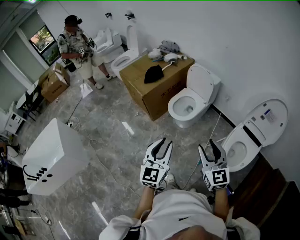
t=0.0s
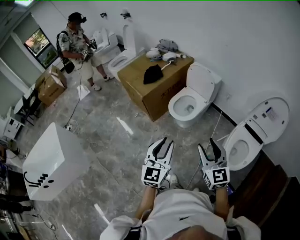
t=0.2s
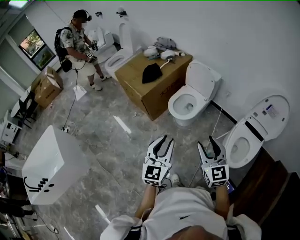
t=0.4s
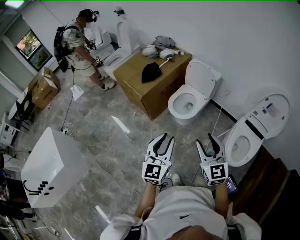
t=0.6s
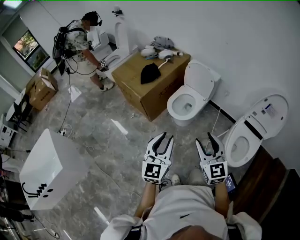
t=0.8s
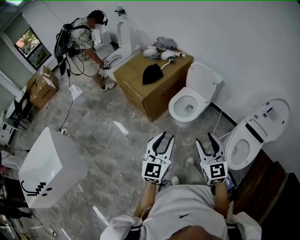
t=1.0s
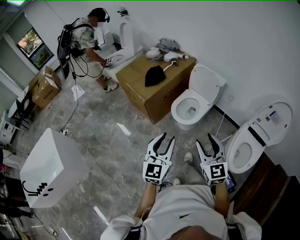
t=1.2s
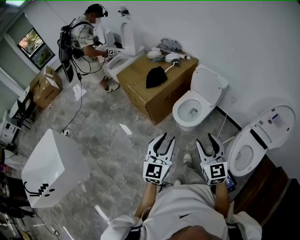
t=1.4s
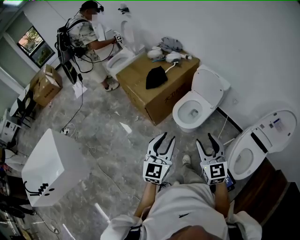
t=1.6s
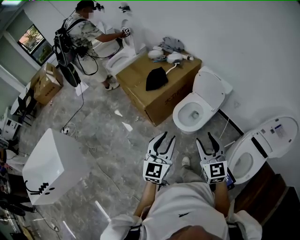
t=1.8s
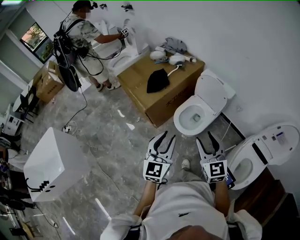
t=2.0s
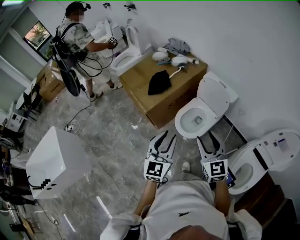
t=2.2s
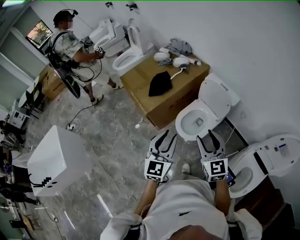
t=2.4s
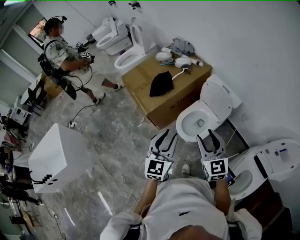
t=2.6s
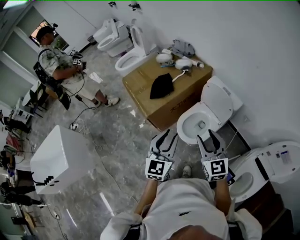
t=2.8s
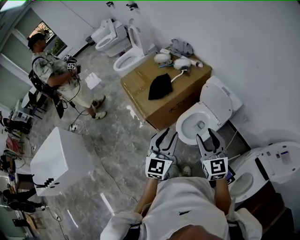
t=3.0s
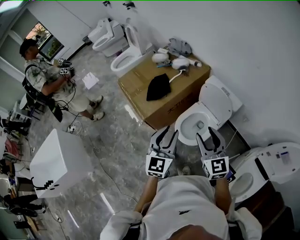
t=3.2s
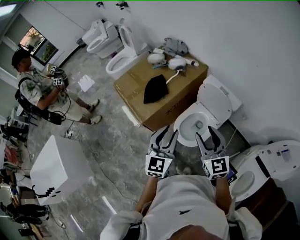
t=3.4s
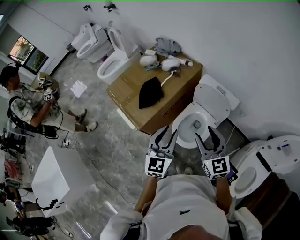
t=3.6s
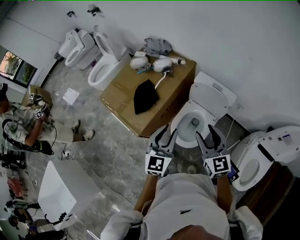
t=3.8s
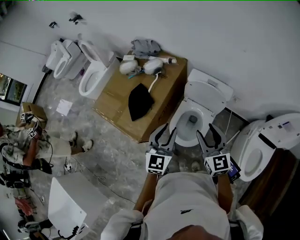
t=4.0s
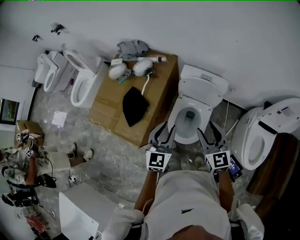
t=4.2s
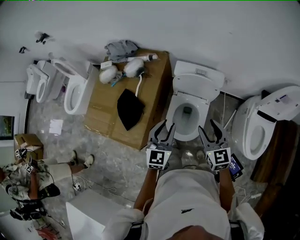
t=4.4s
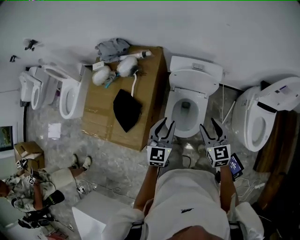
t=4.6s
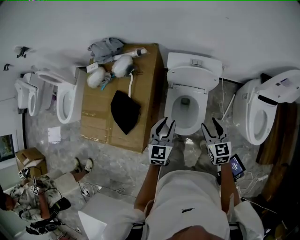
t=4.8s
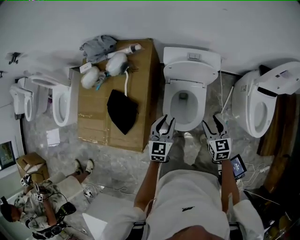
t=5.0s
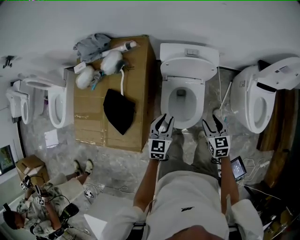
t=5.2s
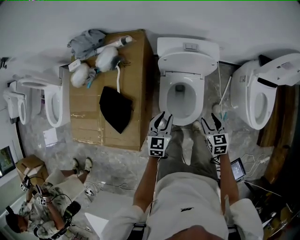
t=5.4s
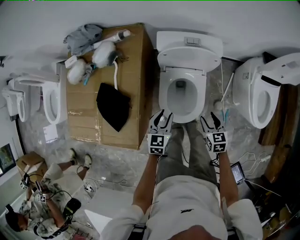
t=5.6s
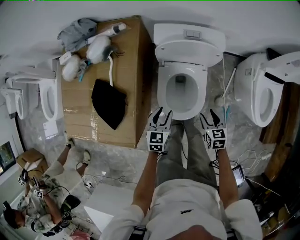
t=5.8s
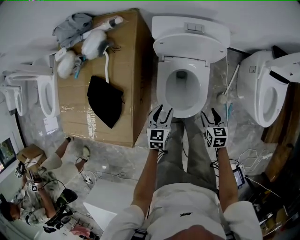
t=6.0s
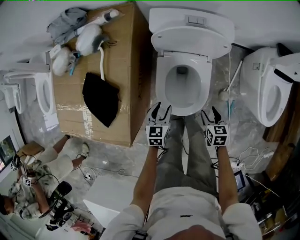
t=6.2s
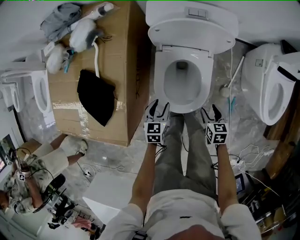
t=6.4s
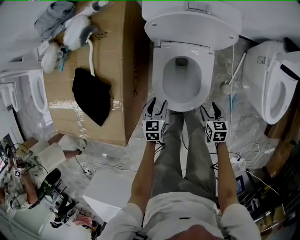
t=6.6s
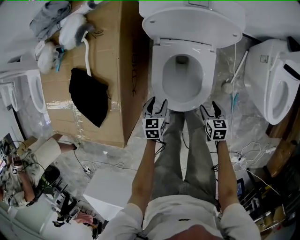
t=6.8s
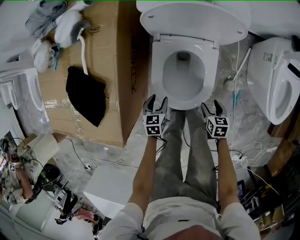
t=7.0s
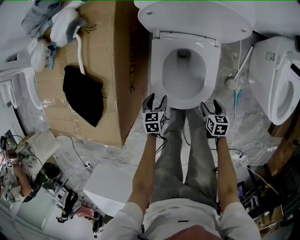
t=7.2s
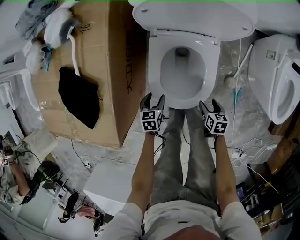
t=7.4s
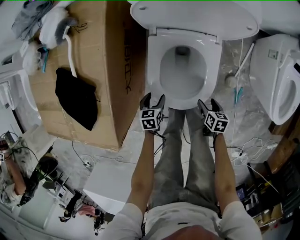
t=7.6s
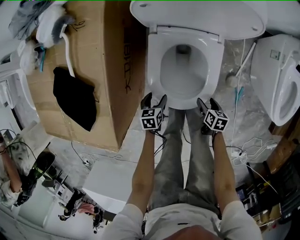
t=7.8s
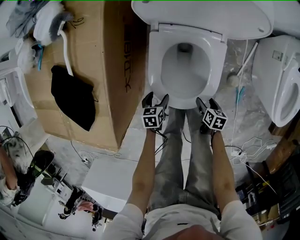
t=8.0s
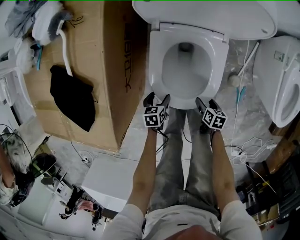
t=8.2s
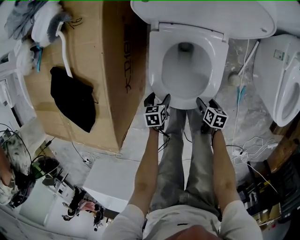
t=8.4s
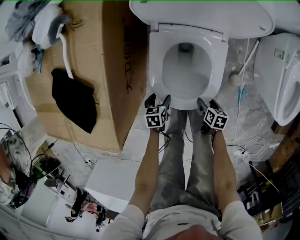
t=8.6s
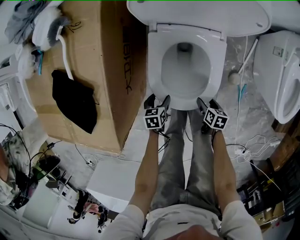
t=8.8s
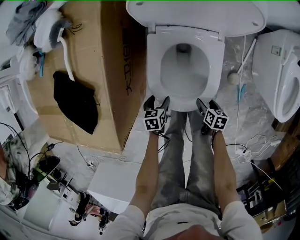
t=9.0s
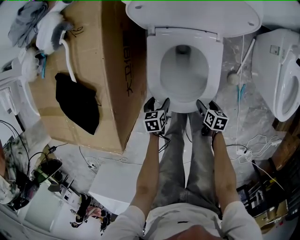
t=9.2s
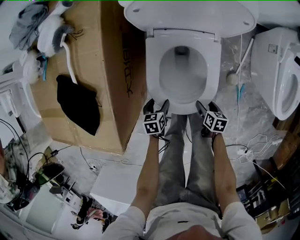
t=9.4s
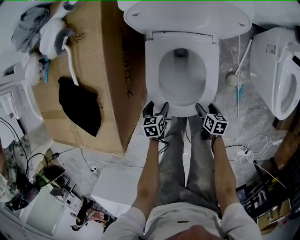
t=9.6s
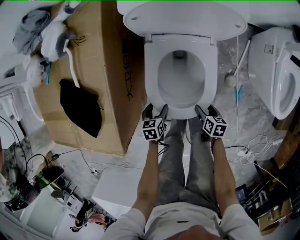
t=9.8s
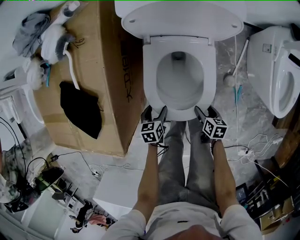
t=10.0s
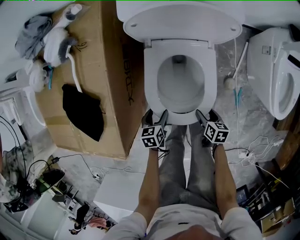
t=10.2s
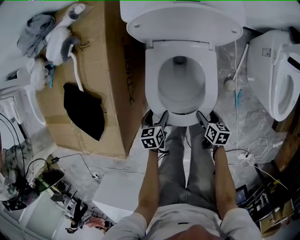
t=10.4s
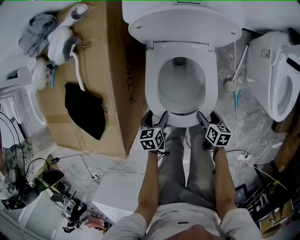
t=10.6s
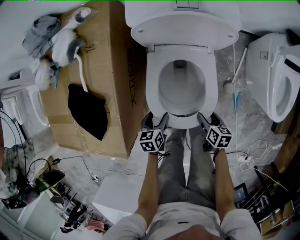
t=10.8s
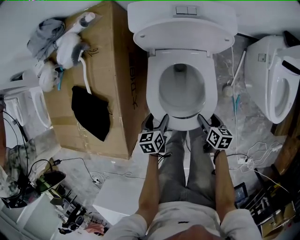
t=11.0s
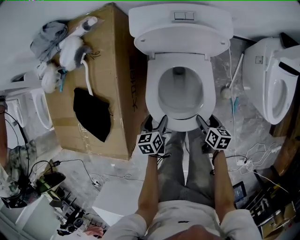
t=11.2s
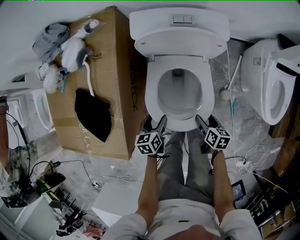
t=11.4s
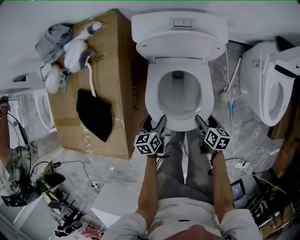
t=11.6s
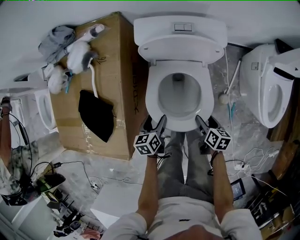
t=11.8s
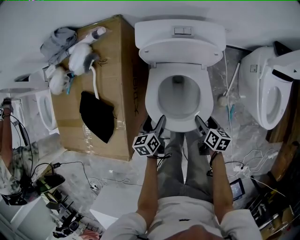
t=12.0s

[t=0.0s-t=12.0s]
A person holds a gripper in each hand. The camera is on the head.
t=0.0s to t=1.6s: The grippers both shift forward and to the left by approximately 20 cm.
t=1.6s to t=3.0s: The grippers both shift forward by roughly 20 cm.
t=3.0s to t=4.4s: The right gripper changes place by some 20 cm, and turns by roughly 40 degrees; the left gripper changes place by some 30 cm, and rotates approximately 30 degrees.
t=4.4s to t=6.0s: Both grippers move downward, roughly 35 cm. The right gripper tips its fingers downward by roughly 30 degrees, while the left gripper turns by approximately 30 degrees.
t=6.0s to t=7.6s: Both grippers travel together downward, approximately 25 cm. The left gripper rotates some 30 degrees. Meanwhile the right gripper rotates some 30 degrees.
t=7.6s to t=9.0s: There are only small adjustments of the grippers.
t=9.0s to t=10.4s: Both grippers travel together upward, about 10 cm.
t=10.4s to t=12.0s: Both grippers travel together upward and forward, roughly 15 cm.

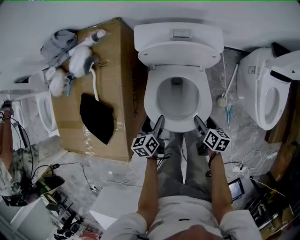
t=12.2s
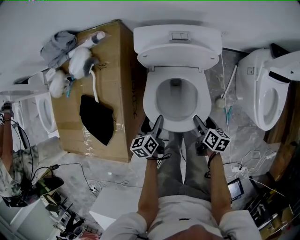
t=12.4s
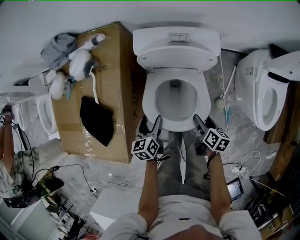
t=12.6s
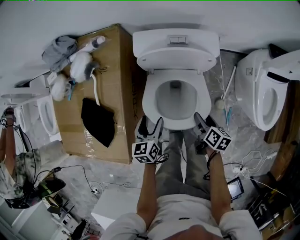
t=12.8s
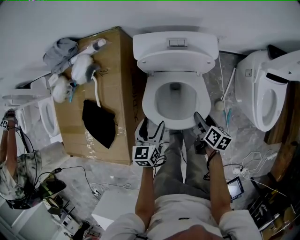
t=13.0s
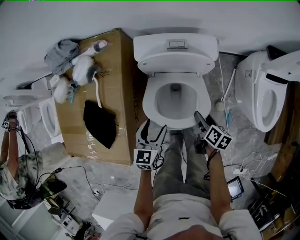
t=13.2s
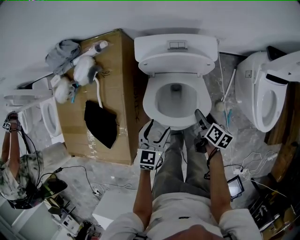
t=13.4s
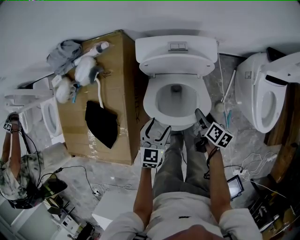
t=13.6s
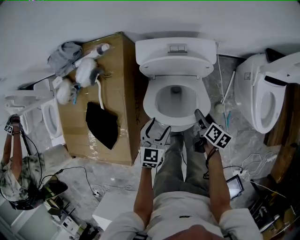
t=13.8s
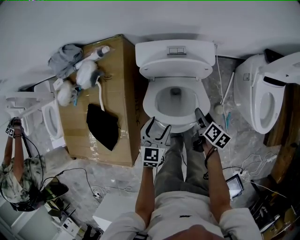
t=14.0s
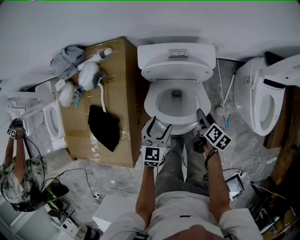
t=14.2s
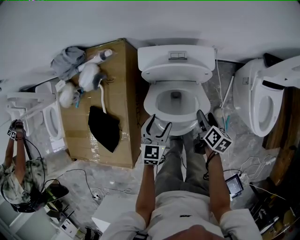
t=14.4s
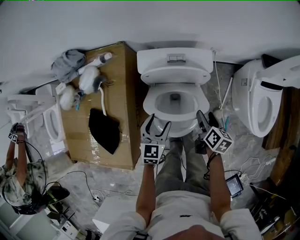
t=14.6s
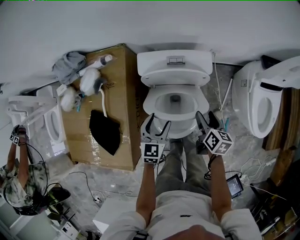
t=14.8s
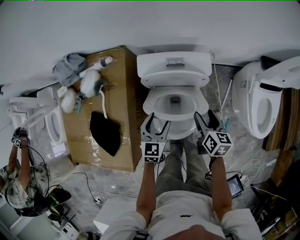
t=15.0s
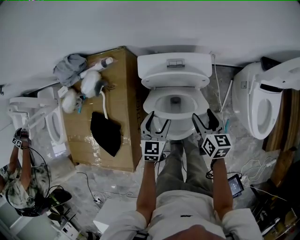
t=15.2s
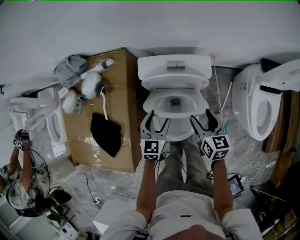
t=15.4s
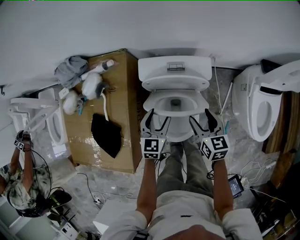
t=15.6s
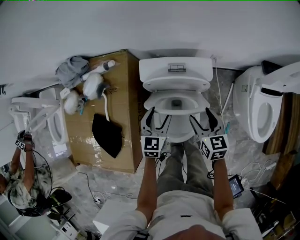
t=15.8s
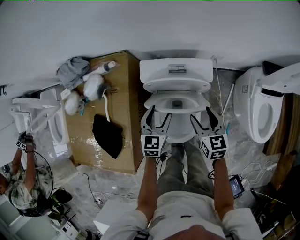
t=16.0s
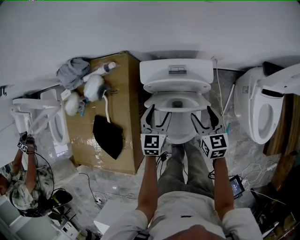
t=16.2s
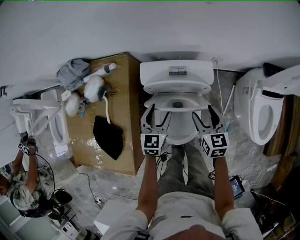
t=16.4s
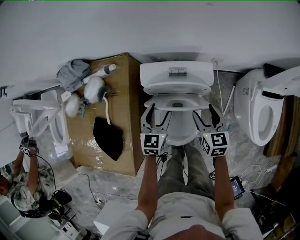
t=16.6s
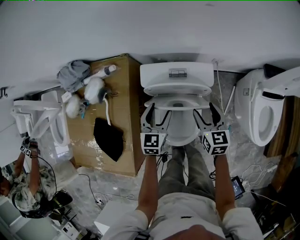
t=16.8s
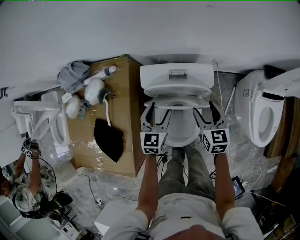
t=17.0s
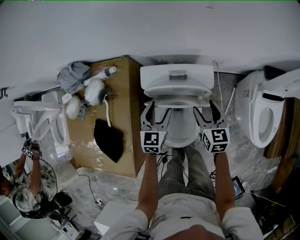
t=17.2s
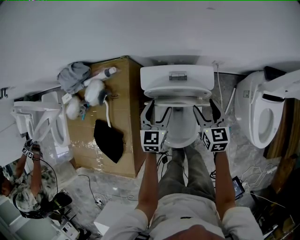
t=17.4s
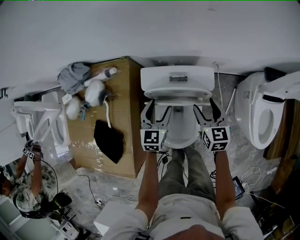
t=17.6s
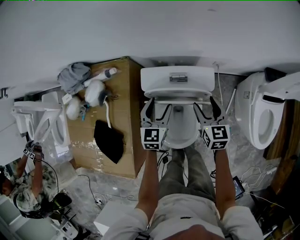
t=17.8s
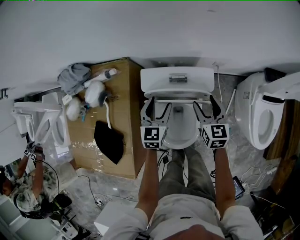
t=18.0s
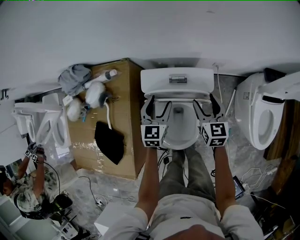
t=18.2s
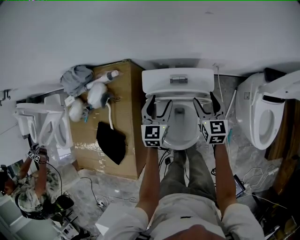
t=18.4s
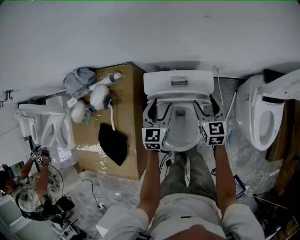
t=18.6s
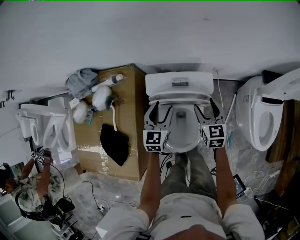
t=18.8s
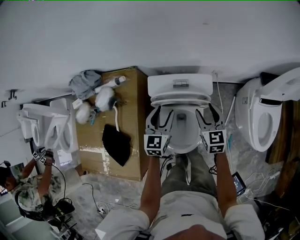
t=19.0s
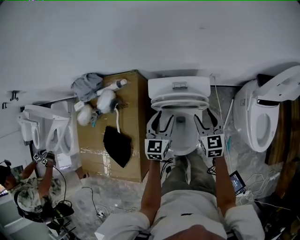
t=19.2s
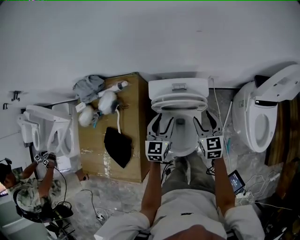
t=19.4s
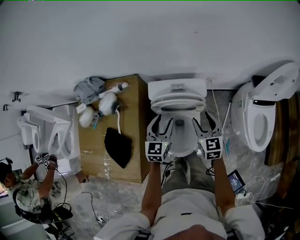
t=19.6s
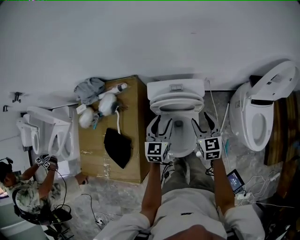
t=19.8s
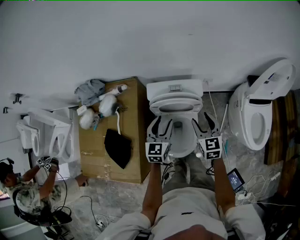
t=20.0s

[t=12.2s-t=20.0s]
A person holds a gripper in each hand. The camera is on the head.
t=12.2s to t=13.8s: The left gripper is displaced upward and to the right by about 10 cm, and rotates around the line of its fingers by some 50 degrees, clockwise from behind; the right gripper moves forward and upward, about 10 cm.
t=13.8s to t=15.4s: The right gripper shifts about 15 cm upward and forward, and rotates some 40 degrees; the left gripper shifts some 10 cm forward.
t=15.4s to t=16.8s: The two grippers go roughly 5 cm forward.
t=16.8s to t=18.4s: Both grippers travel together forward, roughly 5 cm.
t=18.4s to t=20.0s: The grippers both shift backward and upward by roughly 15 cm.

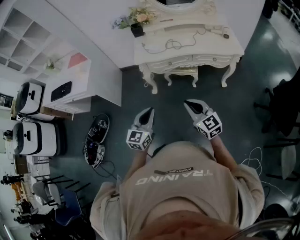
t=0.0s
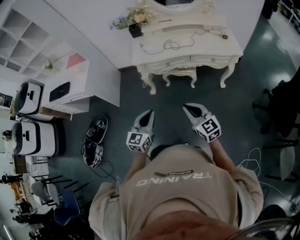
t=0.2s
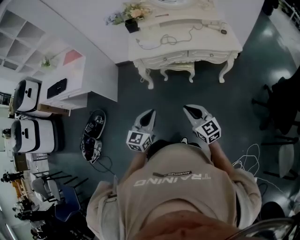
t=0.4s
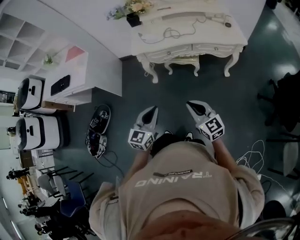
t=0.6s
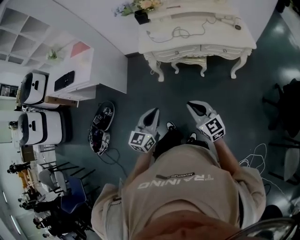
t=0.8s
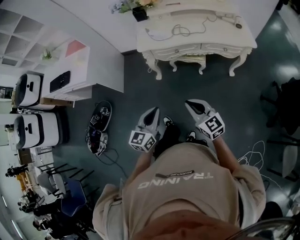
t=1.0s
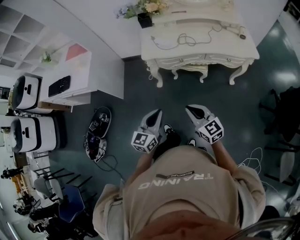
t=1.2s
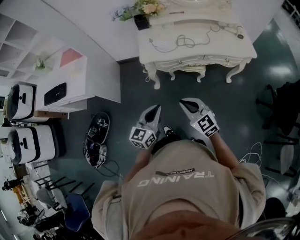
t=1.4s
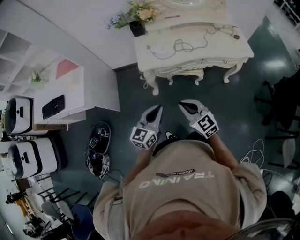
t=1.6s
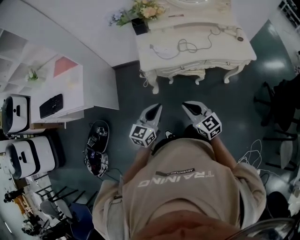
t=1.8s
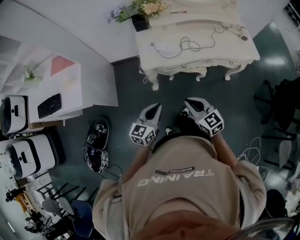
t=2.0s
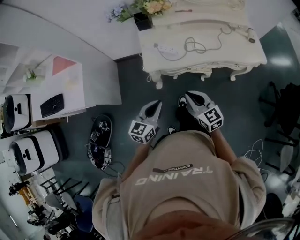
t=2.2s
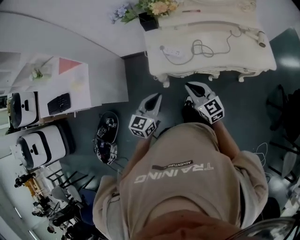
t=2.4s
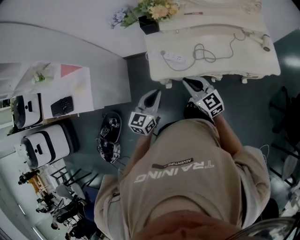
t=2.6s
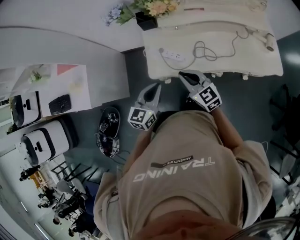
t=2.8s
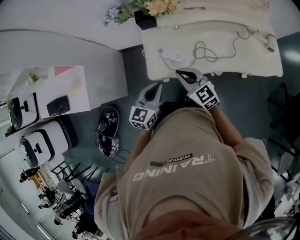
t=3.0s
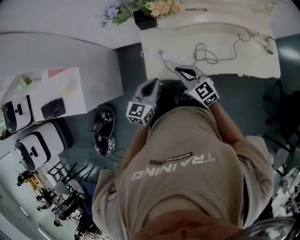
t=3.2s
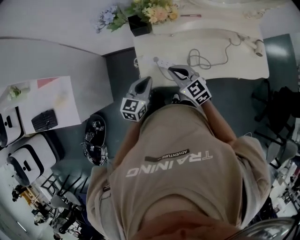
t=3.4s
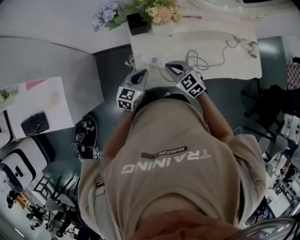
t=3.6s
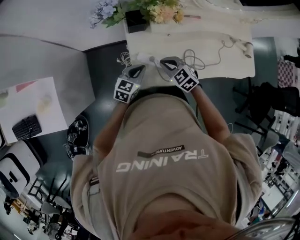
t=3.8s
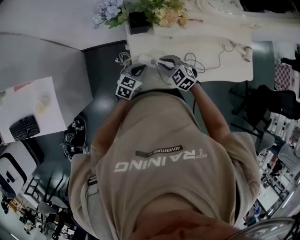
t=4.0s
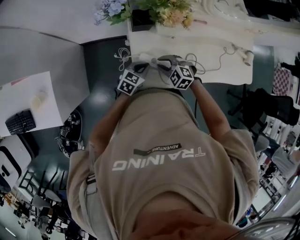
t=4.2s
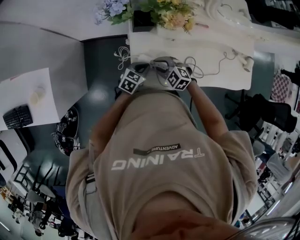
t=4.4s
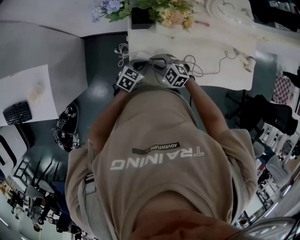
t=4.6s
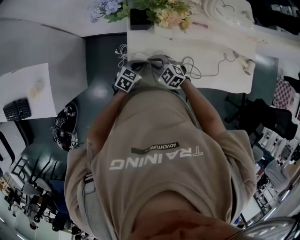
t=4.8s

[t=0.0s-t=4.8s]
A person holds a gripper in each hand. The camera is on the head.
t=0.0s to t=1.6s: The left gripper moves forward, about 20 cm. Meanwhile the right gripper heads forward and to the left, covering approximately 25 cm.
t=1.6s to t=3.2s: The two grippers go about 40 cm forward.
t=3.2s to t=4.8s: The right gripper is displaced downward, forward and to the left by approximately 20 cm, and turns by approximately 30 degrees, while the left gripper shifts approximately 25 cm downward and forward, and rotates about 30 degrees.
